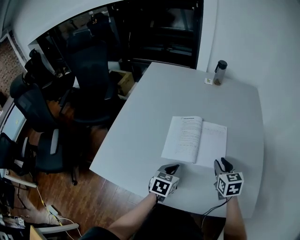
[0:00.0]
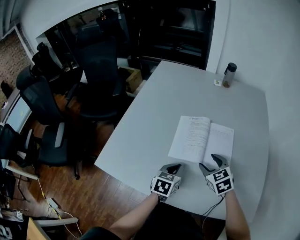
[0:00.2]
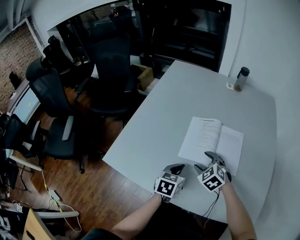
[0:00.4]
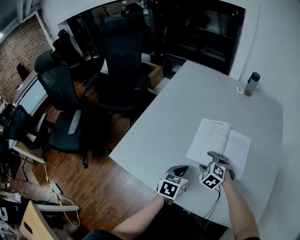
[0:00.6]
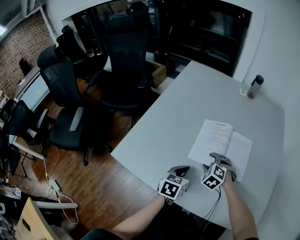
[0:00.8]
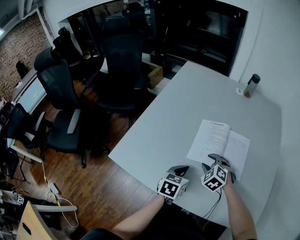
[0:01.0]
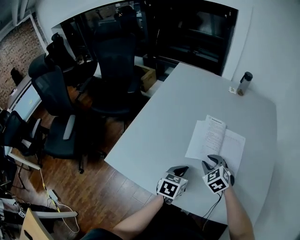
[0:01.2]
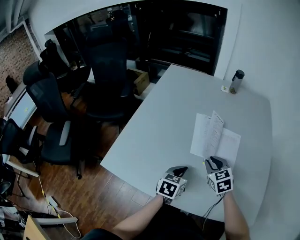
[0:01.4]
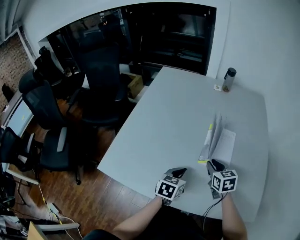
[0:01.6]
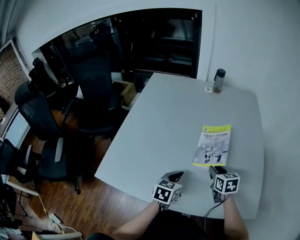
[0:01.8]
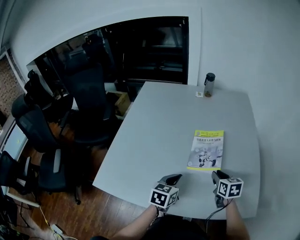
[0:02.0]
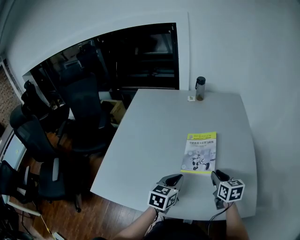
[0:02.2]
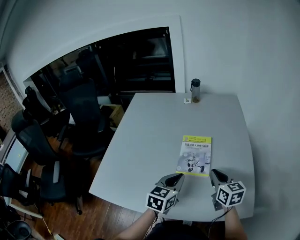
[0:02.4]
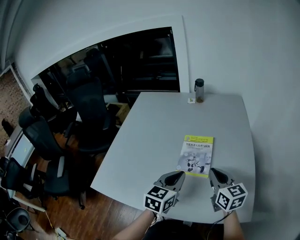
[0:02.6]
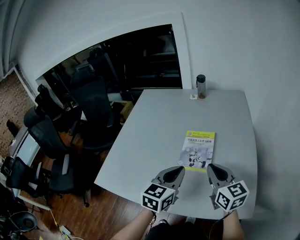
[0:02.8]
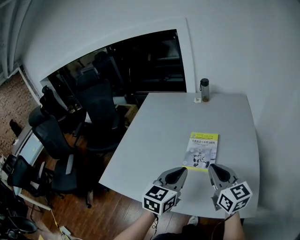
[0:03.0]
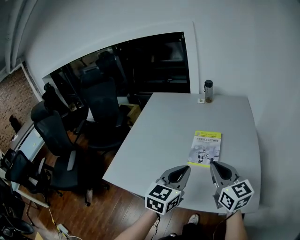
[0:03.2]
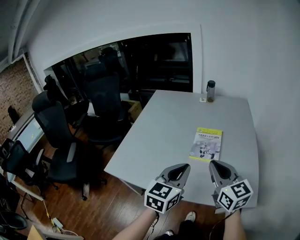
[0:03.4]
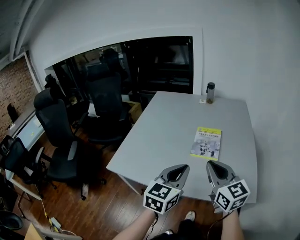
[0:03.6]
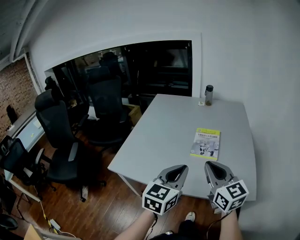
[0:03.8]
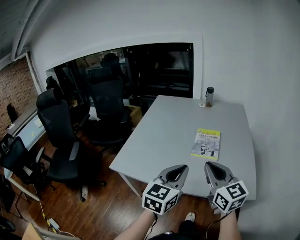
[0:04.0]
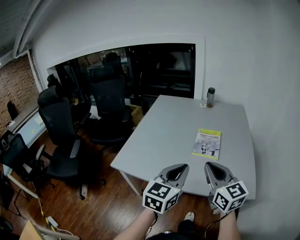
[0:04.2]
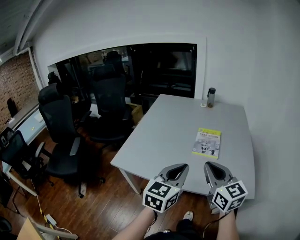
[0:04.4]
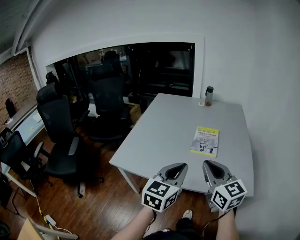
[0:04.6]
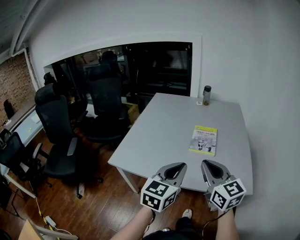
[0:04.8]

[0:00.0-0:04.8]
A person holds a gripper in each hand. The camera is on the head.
0:00.0 to 0:01.6: The right gripper shifts roughly 10 cm to the left, and opens, then closes once more.
0:01.6 to 0:03.2: The left gripper shifts approximately 20 cm upward and to the right, and turns by some 30 degrees. The right gripper shifts about 25 cm upward and backward, and tilts its fingers roughly 30 degrees upward.
0:03.2 to 0:04.8: The two grippers go approximately 15 cm backward and to the left.

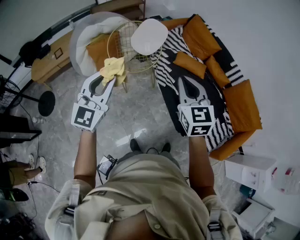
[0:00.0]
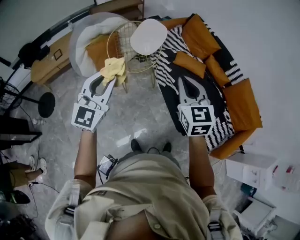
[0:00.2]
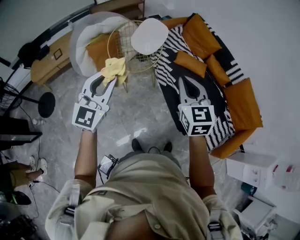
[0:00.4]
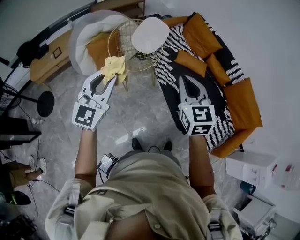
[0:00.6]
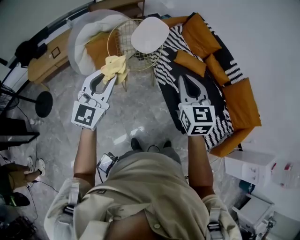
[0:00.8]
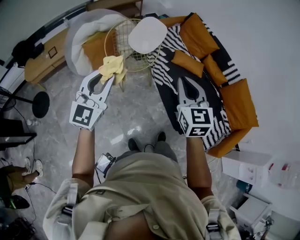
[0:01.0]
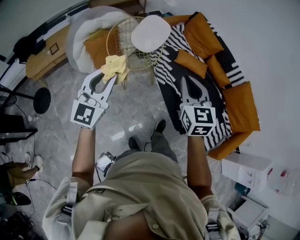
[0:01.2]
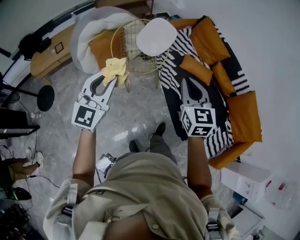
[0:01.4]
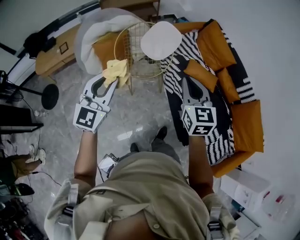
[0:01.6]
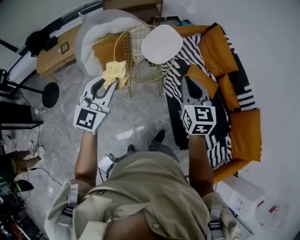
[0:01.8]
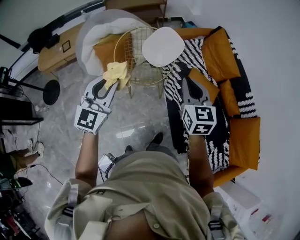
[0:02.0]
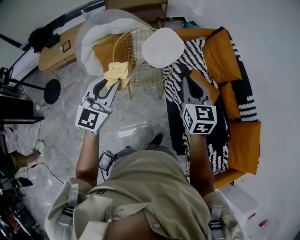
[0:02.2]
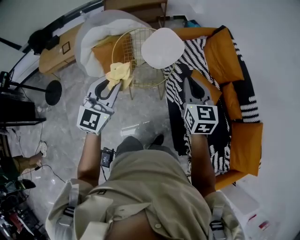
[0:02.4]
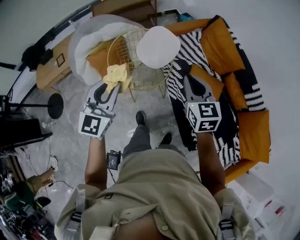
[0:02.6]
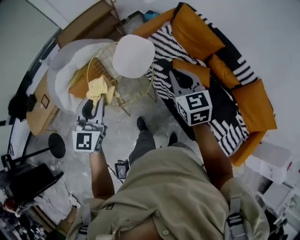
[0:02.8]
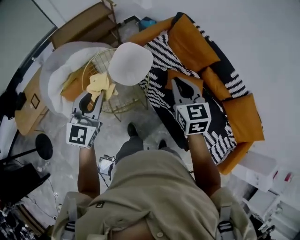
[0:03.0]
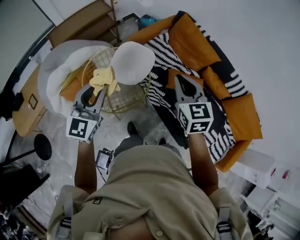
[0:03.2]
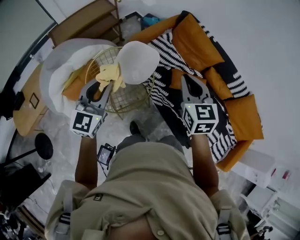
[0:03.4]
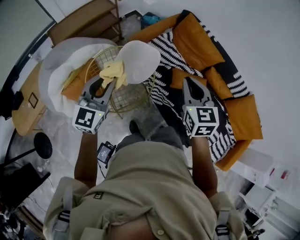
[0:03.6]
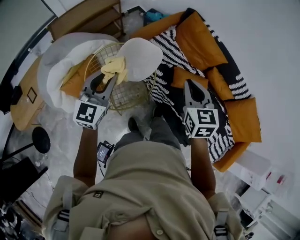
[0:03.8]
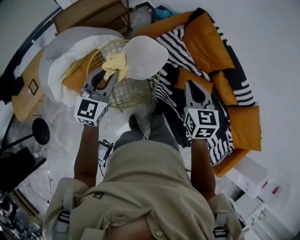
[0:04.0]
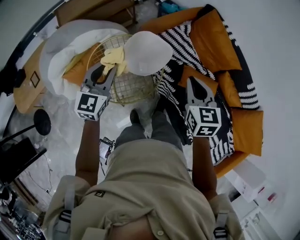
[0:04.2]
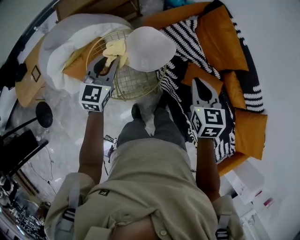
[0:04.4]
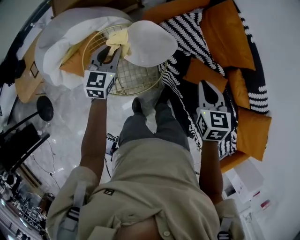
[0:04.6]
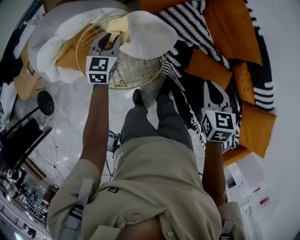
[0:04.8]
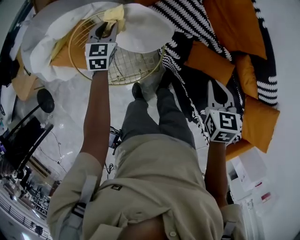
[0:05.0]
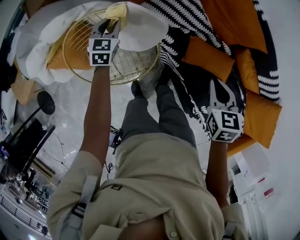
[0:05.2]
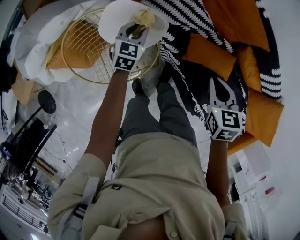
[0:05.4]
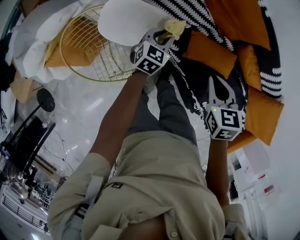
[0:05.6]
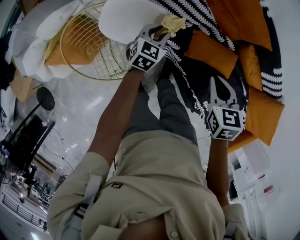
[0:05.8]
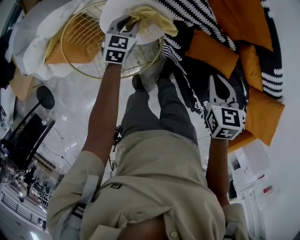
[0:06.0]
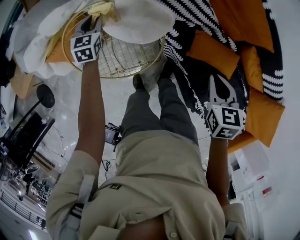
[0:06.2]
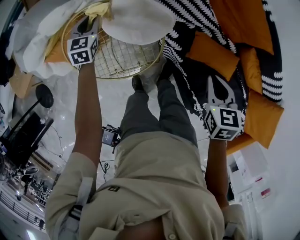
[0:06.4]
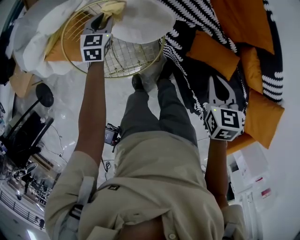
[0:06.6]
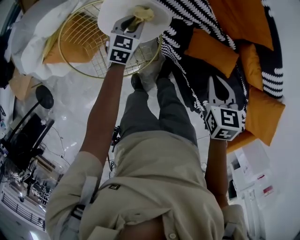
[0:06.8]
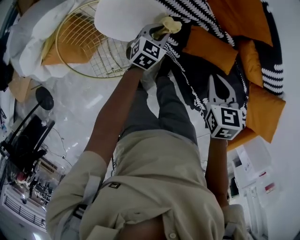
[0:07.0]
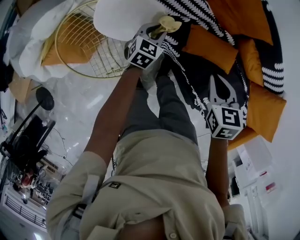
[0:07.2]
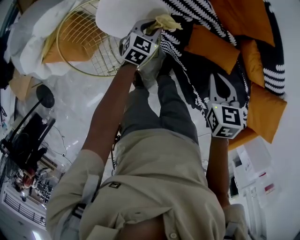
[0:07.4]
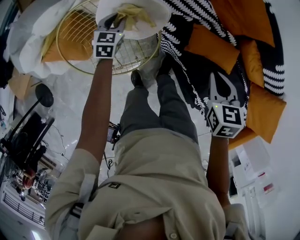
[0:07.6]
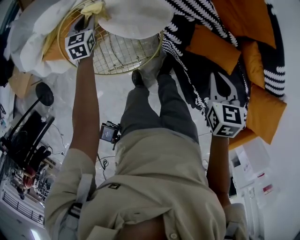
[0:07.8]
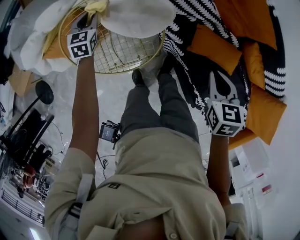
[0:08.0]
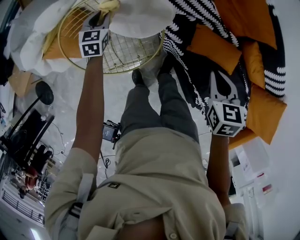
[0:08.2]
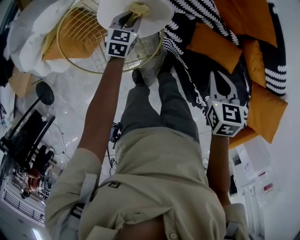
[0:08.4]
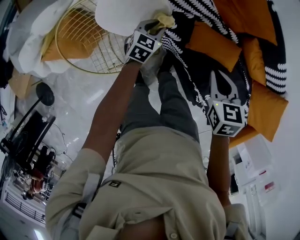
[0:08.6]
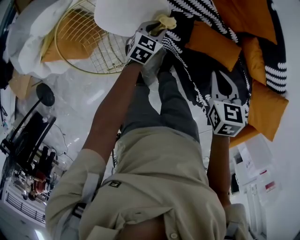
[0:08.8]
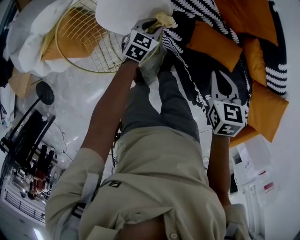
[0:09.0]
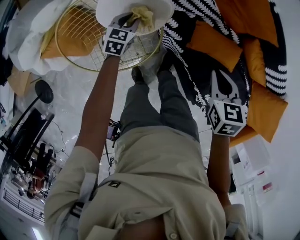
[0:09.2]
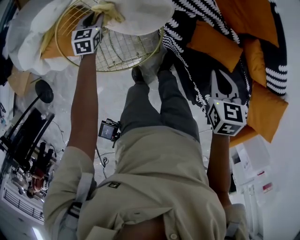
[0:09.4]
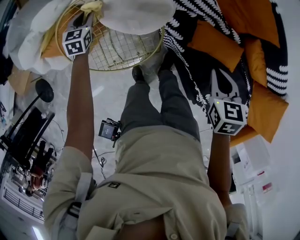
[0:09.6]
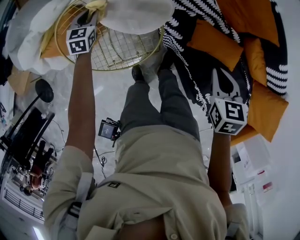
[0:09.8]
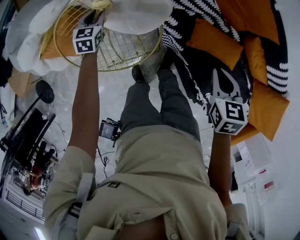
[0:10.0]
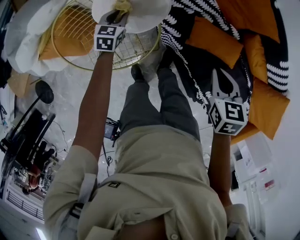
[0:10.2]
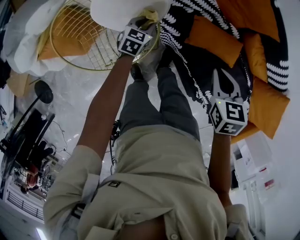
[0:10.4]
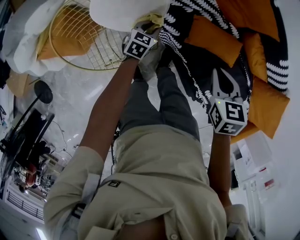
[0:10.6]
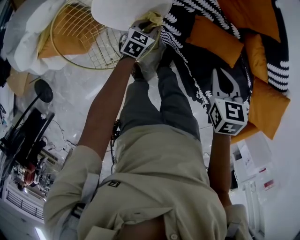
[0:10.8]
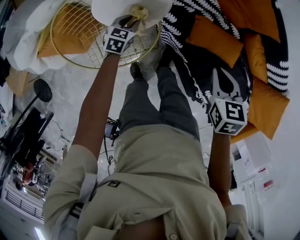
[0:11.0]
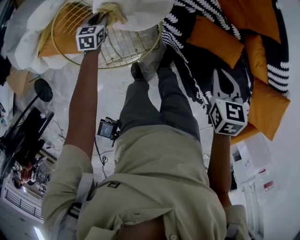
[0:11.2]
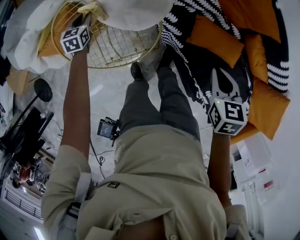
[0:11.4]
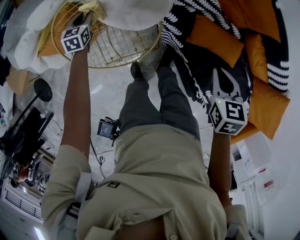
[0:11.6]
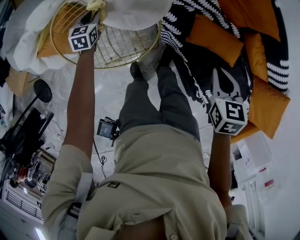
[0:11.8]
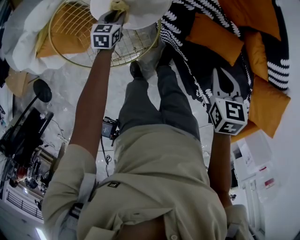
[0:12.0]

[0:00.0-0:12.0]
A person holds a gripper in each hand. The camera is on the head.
0:00.0 to 0:01.6: The grippers both shift forward by roughly 15 cm.
0:01.6 to 0:03.0: The two grippers go about 30 cm forward.
0:03.0 to 0:04.4: Both grippers travel together forward and downward, roughly 20 cm.
0:04.4 to 0:06.0: The right gripper travels downward and to the right by approximately 20 cm, while the left gripper moves downward and forward, about 30 cm, and swivels roughly 20 degrees.
0:06.0 to 0:07.6: The left gripper moves left and right over approximately 30 cm, changing direction 2 times.
0:07.6 to 0:09.0: The left gripper travels to the right by approximately 15 cm.
0:09.0 to 0:10.4: The left gripper reaches some 30 cm to the left, then returns.
0:10.4 to 0:12.0: The left gripper goes left and right, some 35 cm each way, reversing 2 times.

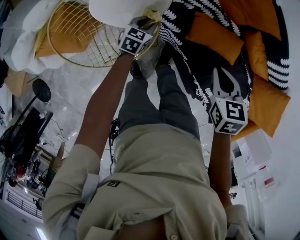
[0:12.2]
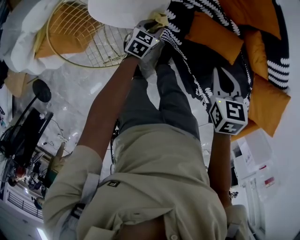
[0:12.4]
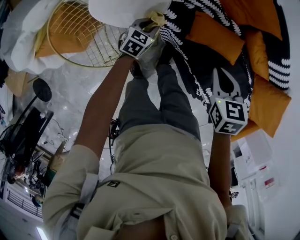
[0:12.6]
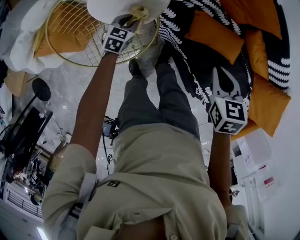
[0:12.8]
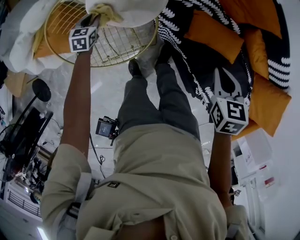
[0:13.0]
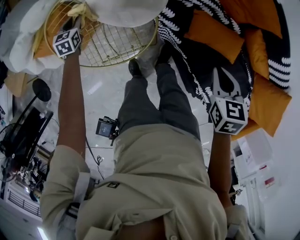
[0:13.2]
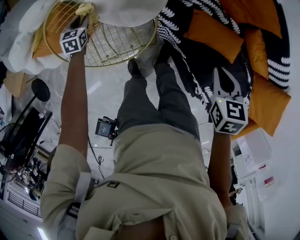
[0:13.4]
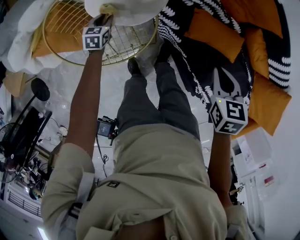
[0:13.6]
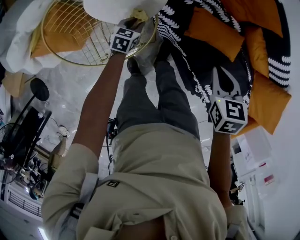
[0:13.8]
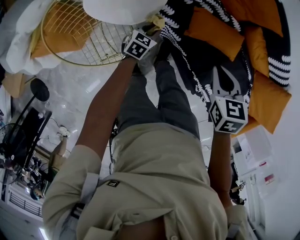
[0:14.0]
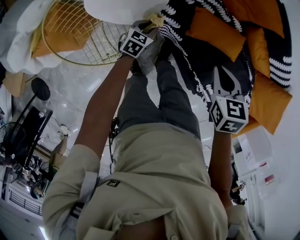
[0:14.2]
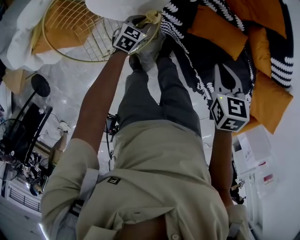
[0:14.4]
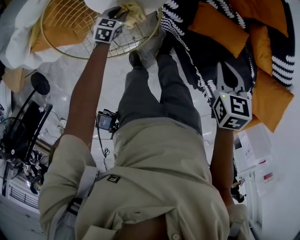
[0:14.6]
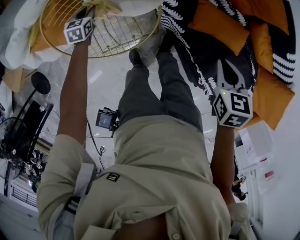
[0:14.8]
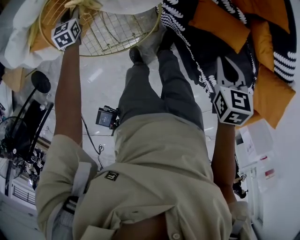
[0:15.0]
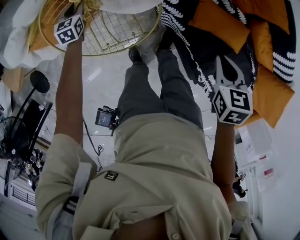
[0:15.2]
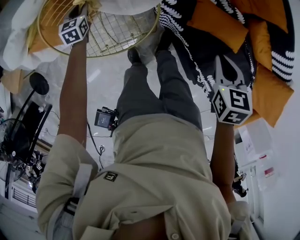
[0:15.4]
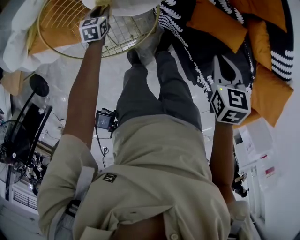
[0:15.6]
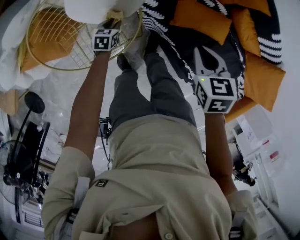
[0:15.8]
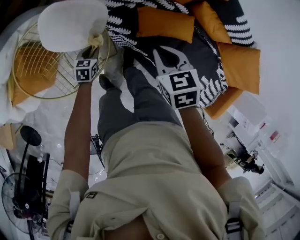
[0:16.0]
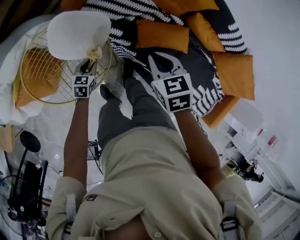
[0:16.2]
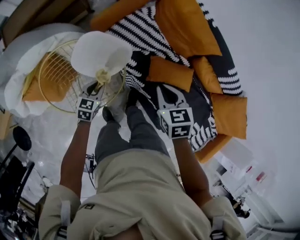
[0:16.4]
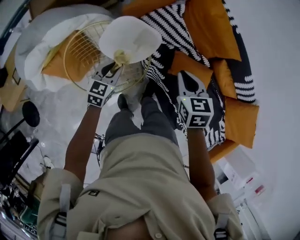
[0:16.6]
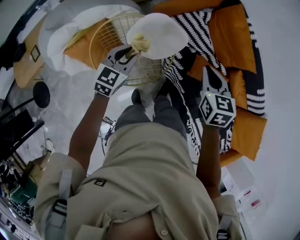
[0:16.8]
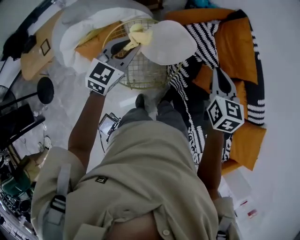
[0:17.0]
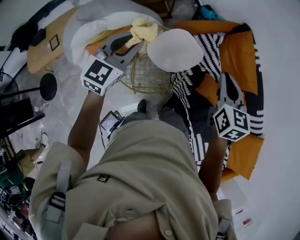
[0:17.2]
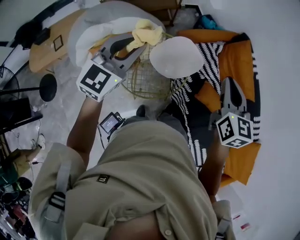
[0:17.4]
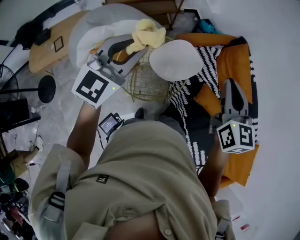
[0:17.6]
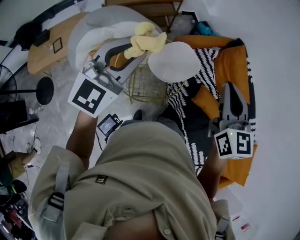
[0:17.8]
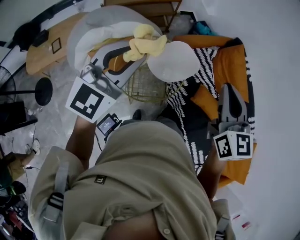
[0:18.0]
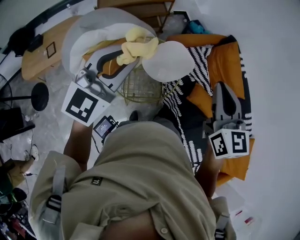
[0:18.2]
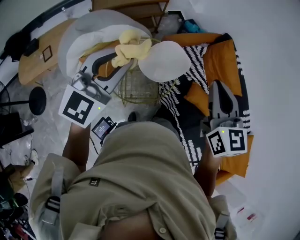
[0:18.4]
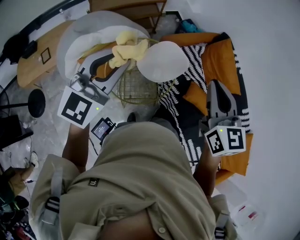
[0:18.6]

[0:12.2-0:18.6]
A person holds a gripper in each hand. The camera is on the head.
0:13.8 to 0:15.4: The left gripper ends up roughly 25 cm from where it was, and changes its angle by about 30 degrees.
0:15.4 to 0:17.0: The left gripper shifts roughly 40 cm upward, and swivels roughly 40 degrees, while the right gripper heads upward and to the left, covering roughly 30 cm, and angles its fingers upward, by some 30 degrees.
0:17.0 to 0:18.6: The left gripper heads upward and backward, covering about 25 cm. Meanwhile the right gripper shifts about 25 cm upward, backward and to the left, and rotates approximately 20 degrees.
